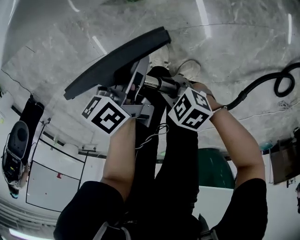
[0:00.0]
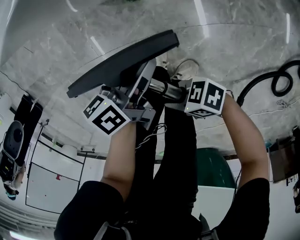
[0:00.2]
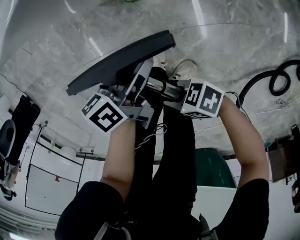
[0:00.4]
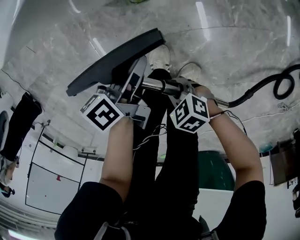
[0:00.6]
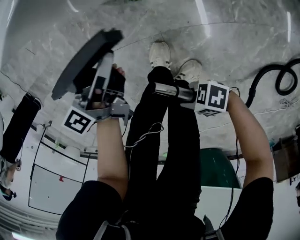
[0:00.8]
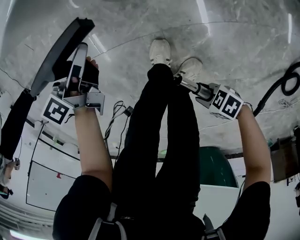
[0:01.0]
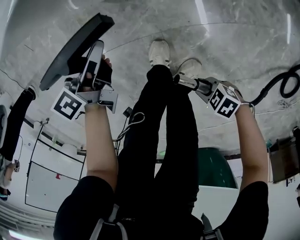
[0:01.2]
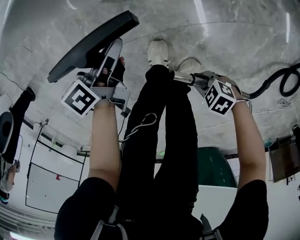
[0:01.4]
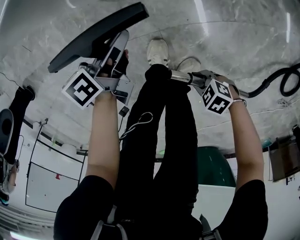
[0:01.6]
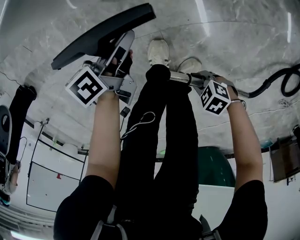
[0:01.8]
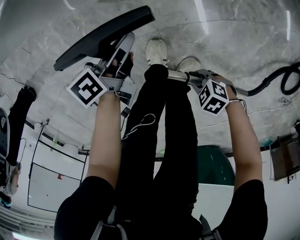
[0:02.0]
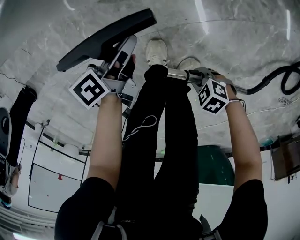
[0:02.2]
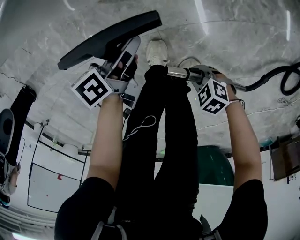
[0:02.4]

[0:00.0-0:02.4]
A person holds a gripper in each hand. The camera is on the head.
0:00.0 to 0:01.2: The right gripper moves about 15 cm; the left gripper moves some 10 cm.
0:01.2 to 0:02.4: The left gripper ends up approximately 10 cm from where it was. Meanwhile the right gripper shifts by approximately 10 cm.

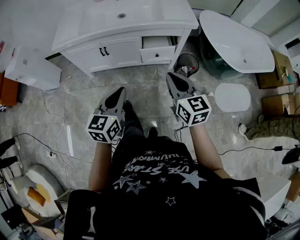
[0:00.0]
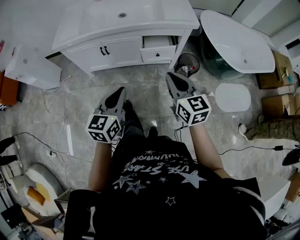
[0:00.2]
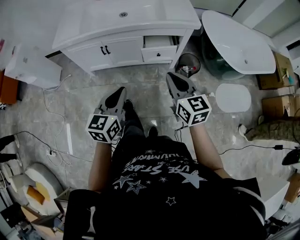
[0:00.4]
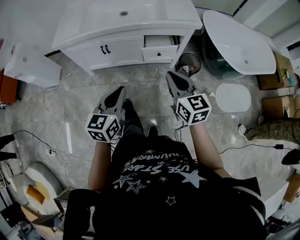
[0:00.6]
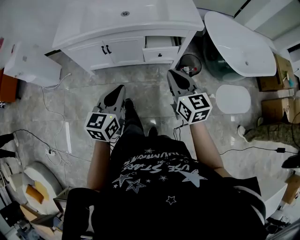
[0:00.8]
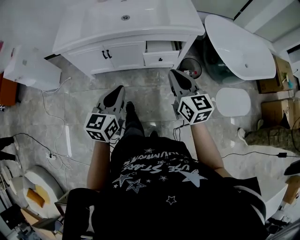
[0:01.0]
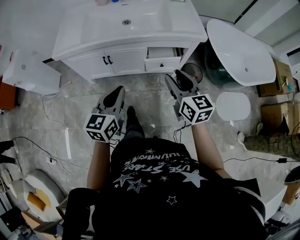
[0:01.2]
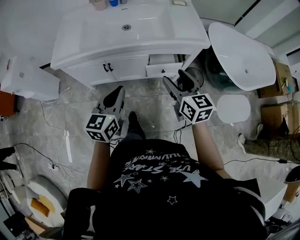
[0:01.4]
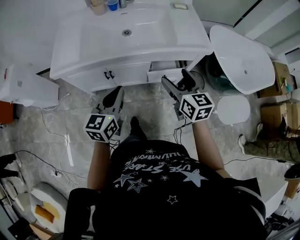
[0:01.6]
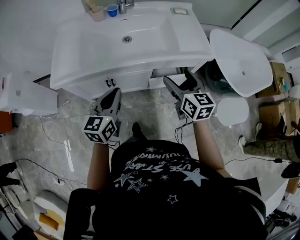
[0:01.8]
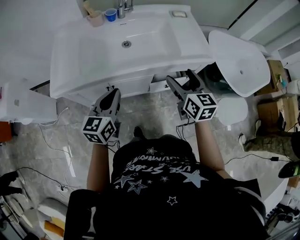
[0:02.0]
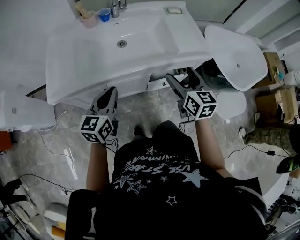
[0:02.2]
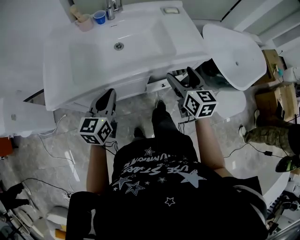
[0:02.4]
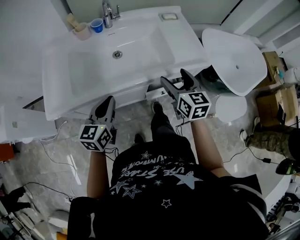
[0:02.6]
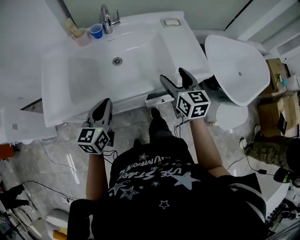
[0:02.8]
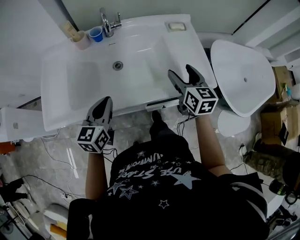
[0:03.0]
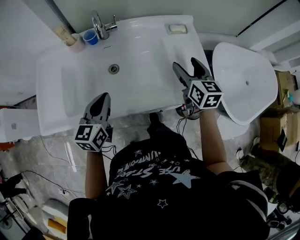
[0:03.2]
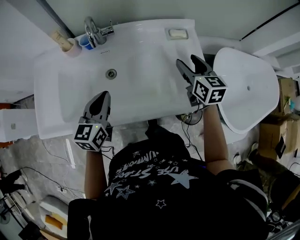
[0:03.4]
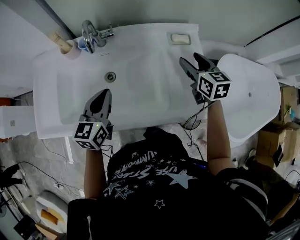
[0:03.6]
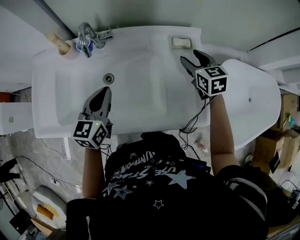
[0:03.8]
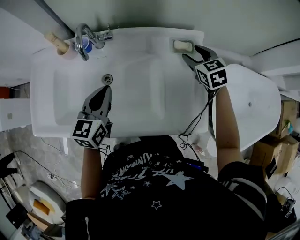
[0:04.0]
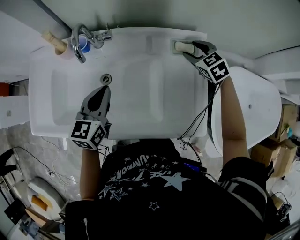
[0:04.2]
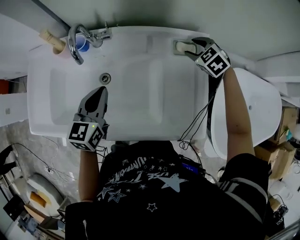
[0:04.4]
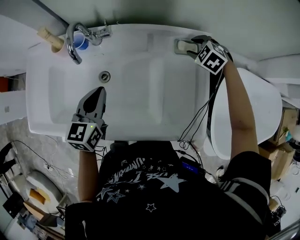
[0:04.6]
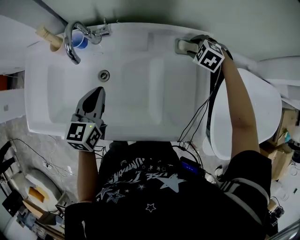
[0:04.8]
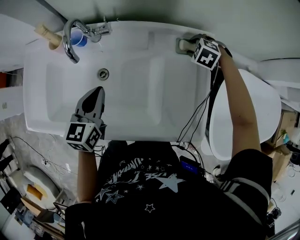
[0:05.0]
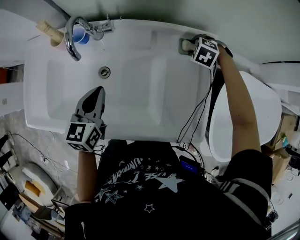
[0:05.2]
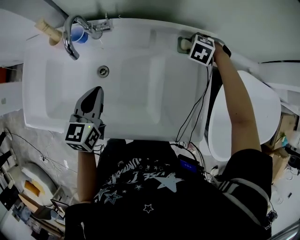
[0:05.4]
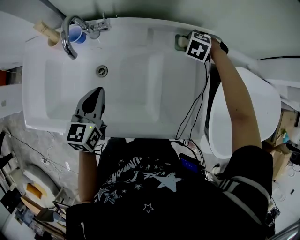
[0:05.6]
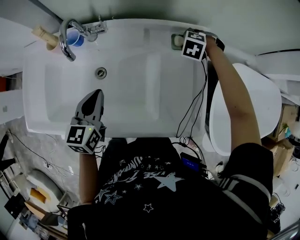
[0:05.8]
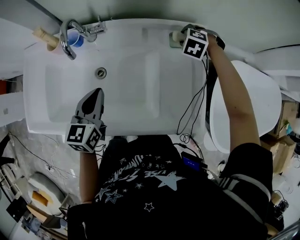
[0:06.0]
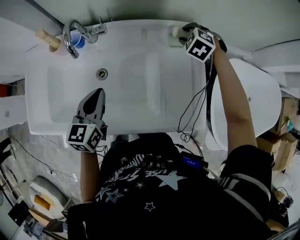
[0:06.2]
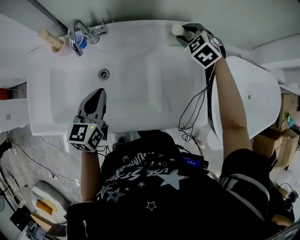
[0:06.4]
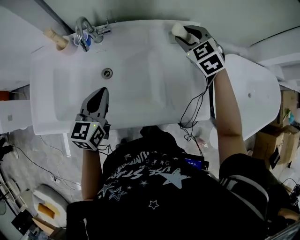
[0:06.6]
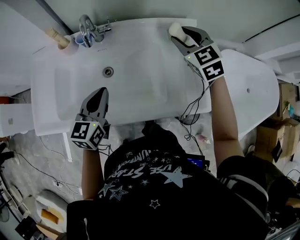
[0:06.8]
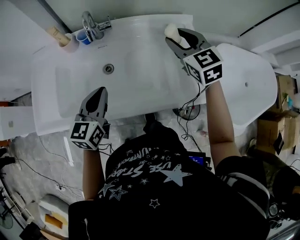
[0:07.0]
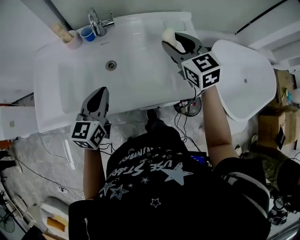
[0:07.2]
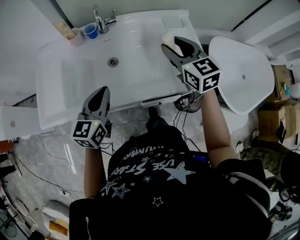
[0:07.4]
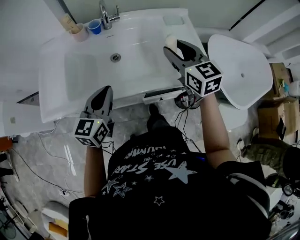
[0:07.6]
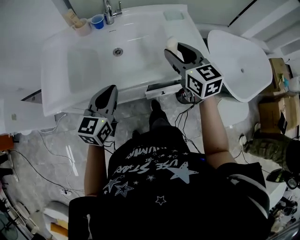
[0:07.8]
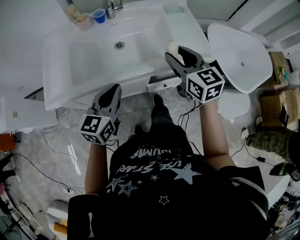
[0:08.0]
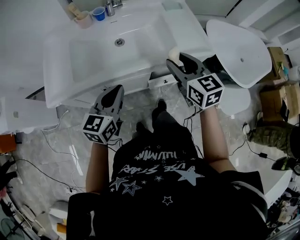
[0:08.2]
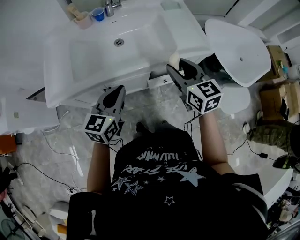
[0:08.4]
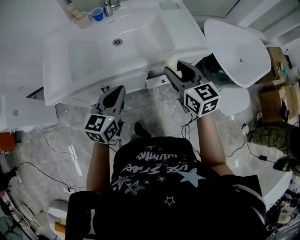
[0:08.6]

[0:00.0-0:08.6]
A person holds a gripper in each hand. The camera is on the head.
0:00.0 to 0:01.4: Both grippers move forward, approximately 15 cm. The right gripper opens up.
0:01.4 to 0:02.8: Both grippers travel together forward, roughly 25 cm.
0:02.8 to 0:04.4: The left gripper goes approximately 30 cm forward and to the right, while the right gripper heads forward, covering approximately 40 cm, and angles its fingers downward, by about 40 degrees.
0:04.4 to 0:05.8: The right gripper goes about 5 cm downward, and swivels roughly 30 degrees.
0:05.8 to 0:07.2: The right gripper moves some 35 cm, and points its fingers approximately 60 degrees further upward. Meanwhile the left gripper changes place by some 15 cm.
0:07.2 to 0:08.6: The grippers both shift backward by about 25 cm.

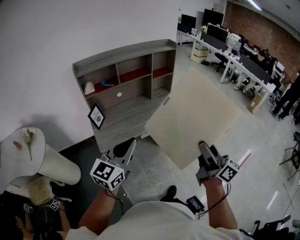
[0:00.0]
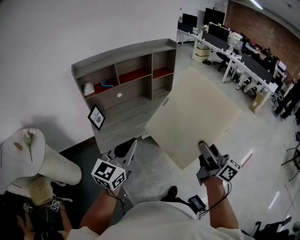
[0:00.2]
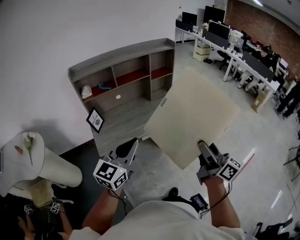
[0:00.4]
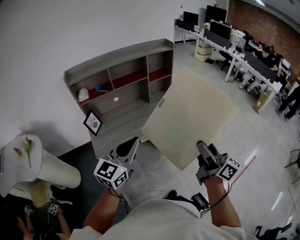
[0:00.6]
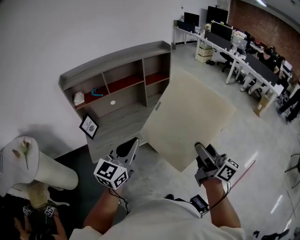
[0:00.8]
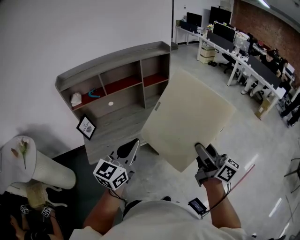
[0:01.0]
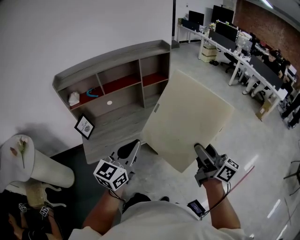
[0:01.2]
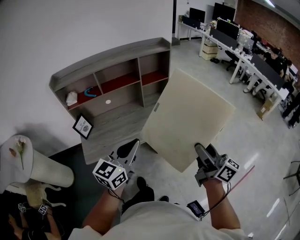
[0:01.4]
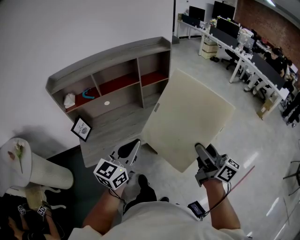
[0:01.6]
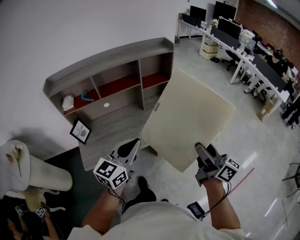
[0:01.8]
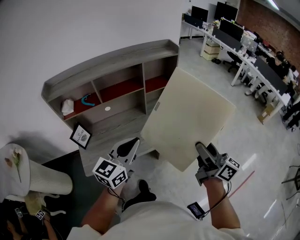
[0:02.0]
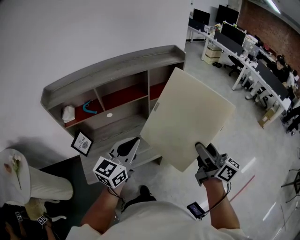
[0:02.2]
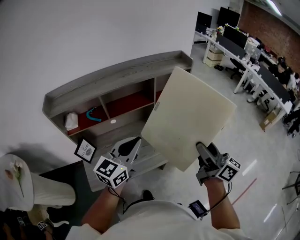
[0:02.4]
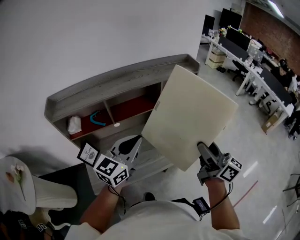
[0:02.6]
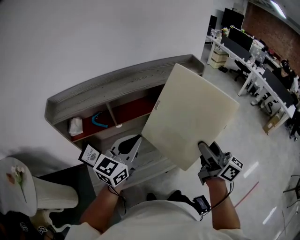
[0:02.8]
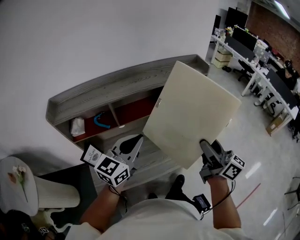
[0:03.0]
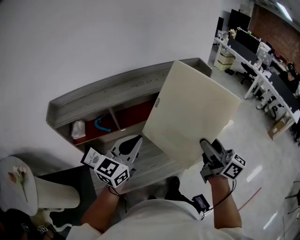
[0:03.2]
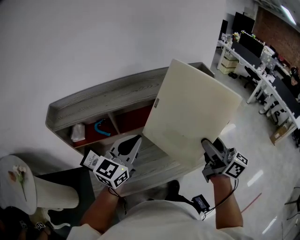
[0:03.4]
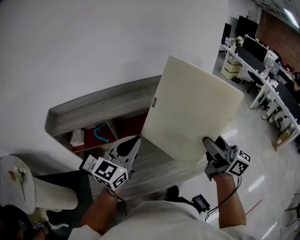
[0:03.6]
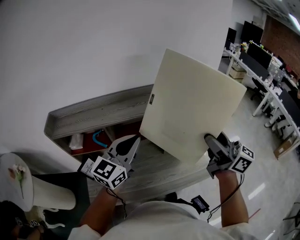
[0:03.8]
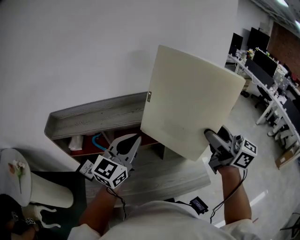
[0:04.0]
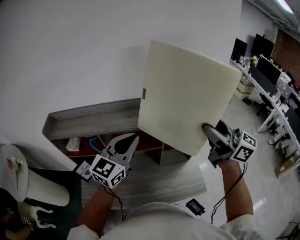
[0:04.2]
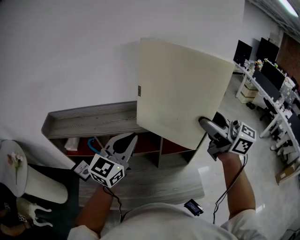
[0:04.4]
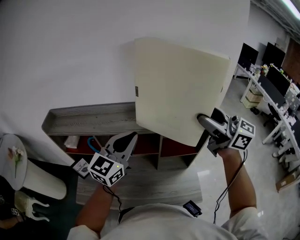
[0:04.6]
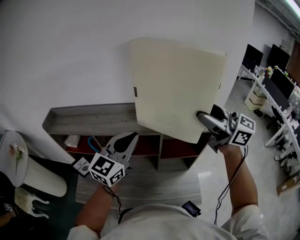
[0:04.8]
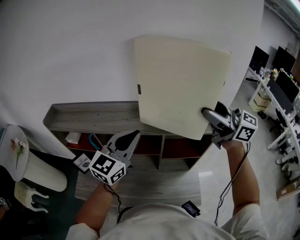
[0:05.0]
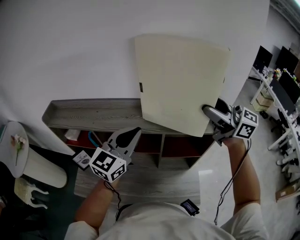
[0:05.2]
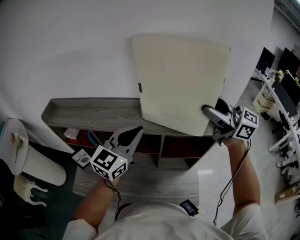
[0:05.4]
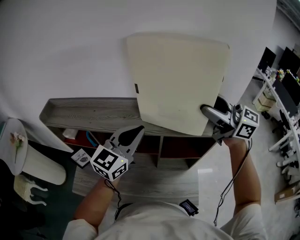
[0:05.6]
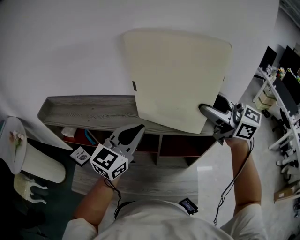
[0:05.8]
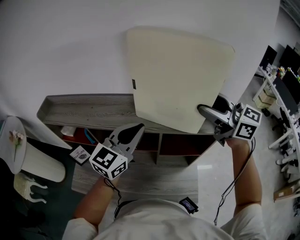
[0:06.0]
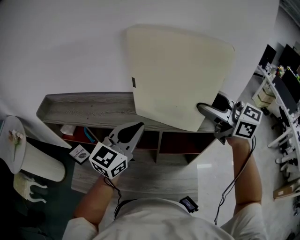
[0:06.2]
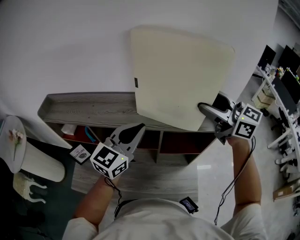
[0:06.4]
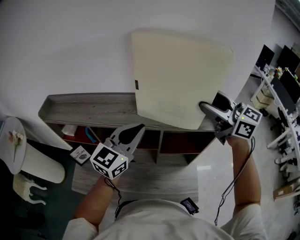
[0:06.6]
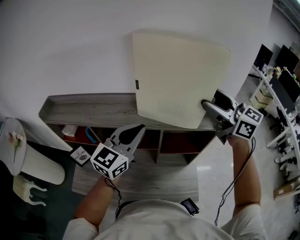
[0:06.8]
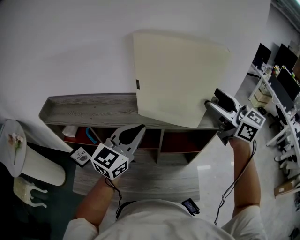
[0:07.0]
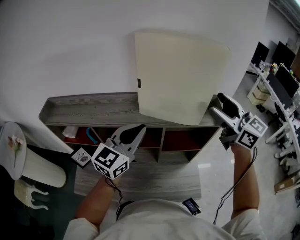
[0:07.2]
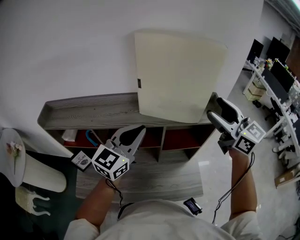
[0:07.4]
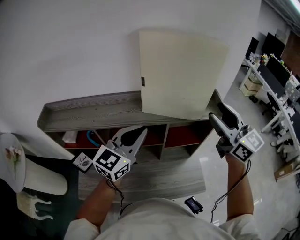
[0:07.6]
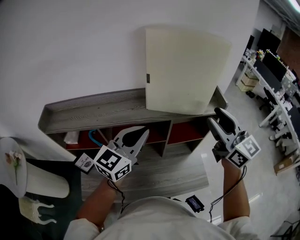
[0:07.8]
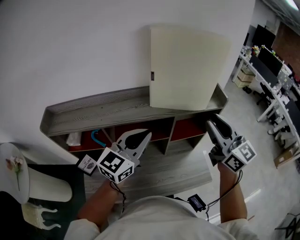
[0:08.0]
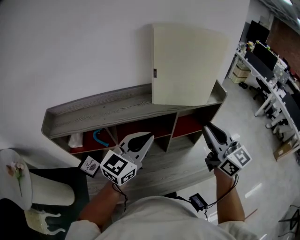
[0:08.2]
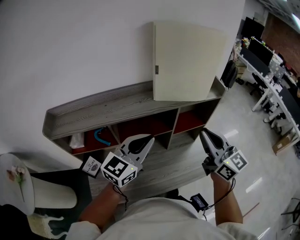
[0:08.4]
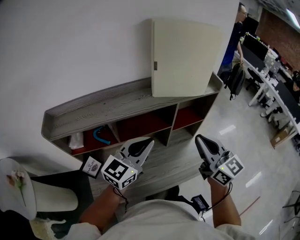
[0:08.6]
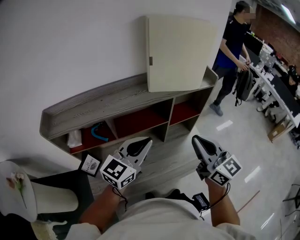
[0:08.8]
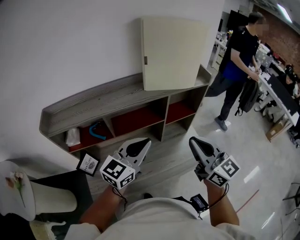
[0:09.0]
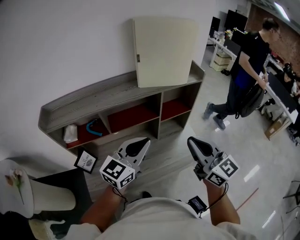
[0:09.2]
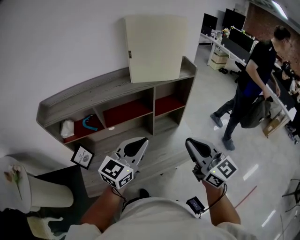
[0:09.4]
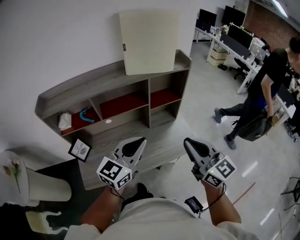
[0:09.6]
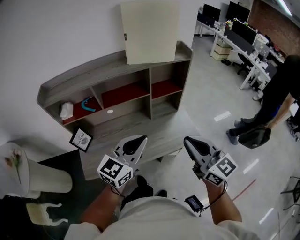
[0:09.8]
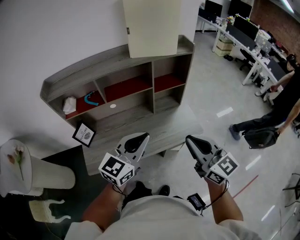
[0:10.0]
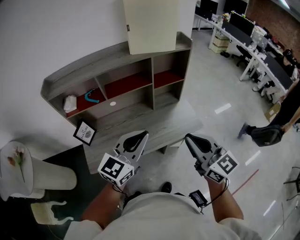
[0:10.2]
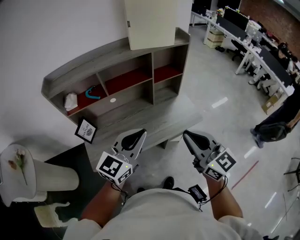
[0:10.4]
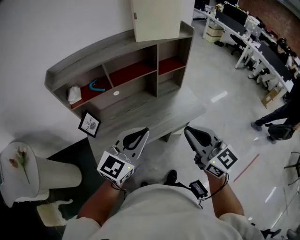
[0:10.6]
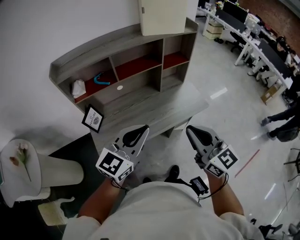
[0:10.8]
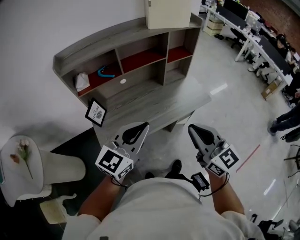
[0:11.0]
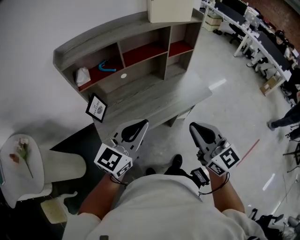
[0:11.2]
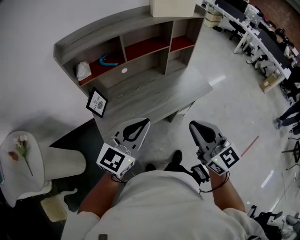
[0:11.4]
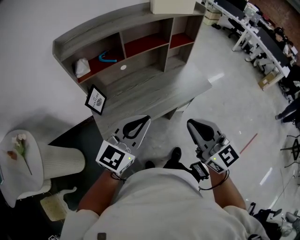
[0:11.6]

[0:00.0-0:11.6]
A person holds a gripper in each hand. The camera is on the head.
0:00.0 to 0:01.4: Both grippers travel together forward and to the right, some 25 cm.
0:01.4 to 0:02.8: Both grippers travel together forward and to the left, roughly 30 cm.
0:02.8 to 0:04.4: The left gripper shifts by approximately 20 cm, and swivels some 20 degrees, while the right gripper moves about 35 cm, and swivels some 40 degrees.
0:04.4 to 0:05.8: The left gripper travels to the right and forward by about 10 cm. Meanwhile the right gripper goes some 10 cm forward.
0:05.8 to 0:07.2: The right gripper shifts by roughly 5 cm, and swivels about 20 degrees.
0:07.2 to 0:08.8: The left gripper travels backward, to the left and downward by some 15 cm, and rotates about 20 degrees, while the right gripper moves backward, to the left and downward, approximately 30 cm, changes its angle by roughly 20 degrees, and closes its fingers.
0:08.8 to 0:10.2: The two grippers go approximately 20 cm backward.
0:10.2 to 0:11.6: The grippers both shift to the left and backward by roughly 25 cm.

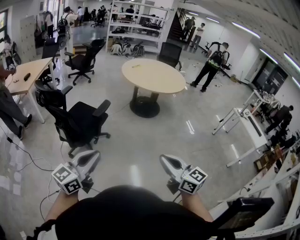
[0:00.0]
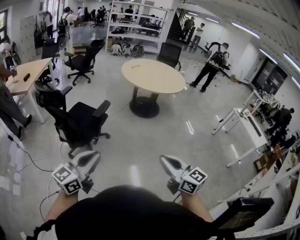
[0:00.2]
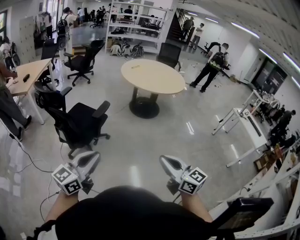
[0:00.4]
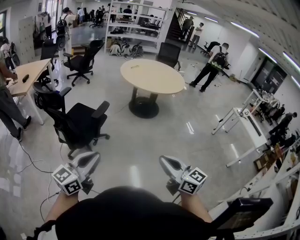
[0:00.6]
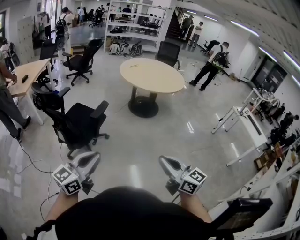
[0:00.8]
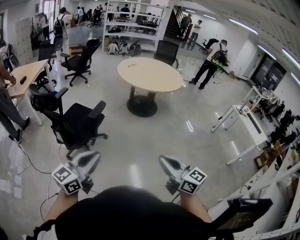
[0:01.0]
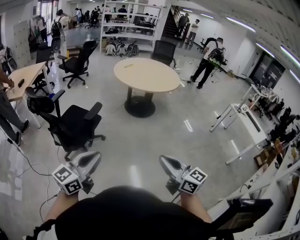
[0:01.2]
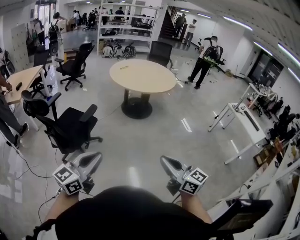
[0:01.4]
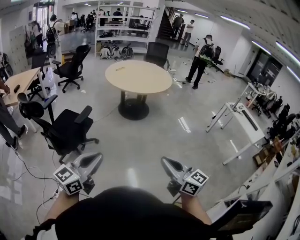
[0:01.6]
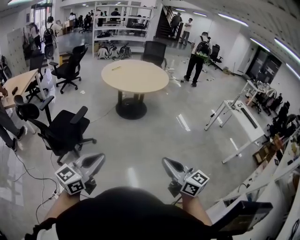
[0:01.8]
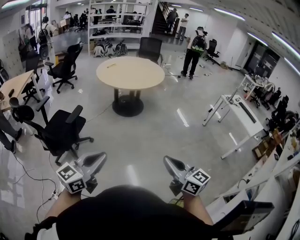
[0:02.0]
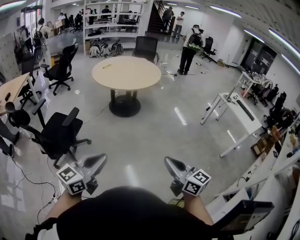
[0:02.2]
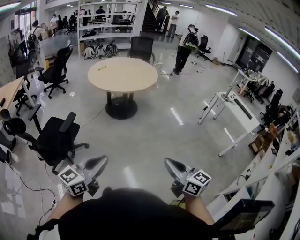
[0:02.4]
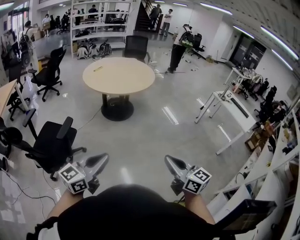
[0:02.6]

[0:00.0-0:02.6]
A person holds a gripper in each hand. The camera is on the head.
0:00.0 to 0:01.2: The grippers both shift to the right by roughly 5 cm.
0:01.2 to 0:02.6: The grippers both shift to the right and forward by approximately 20 cm.
